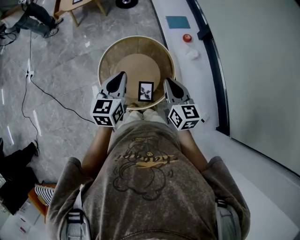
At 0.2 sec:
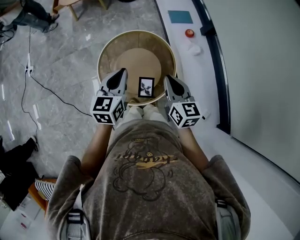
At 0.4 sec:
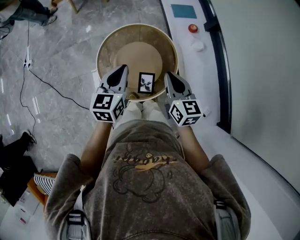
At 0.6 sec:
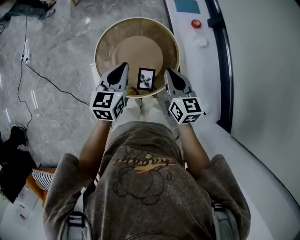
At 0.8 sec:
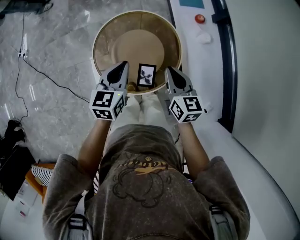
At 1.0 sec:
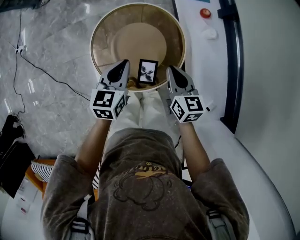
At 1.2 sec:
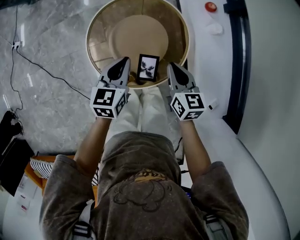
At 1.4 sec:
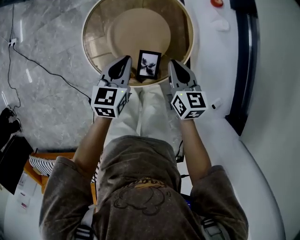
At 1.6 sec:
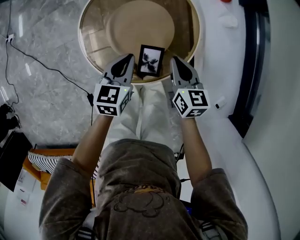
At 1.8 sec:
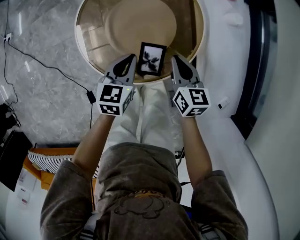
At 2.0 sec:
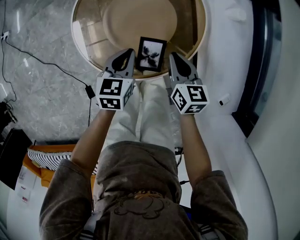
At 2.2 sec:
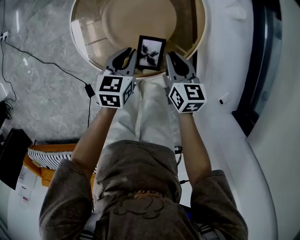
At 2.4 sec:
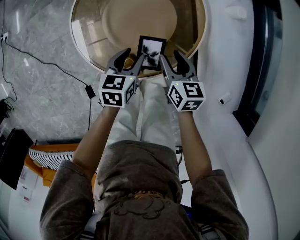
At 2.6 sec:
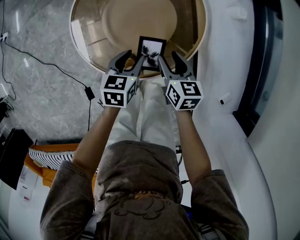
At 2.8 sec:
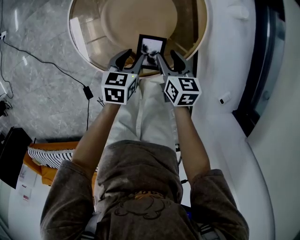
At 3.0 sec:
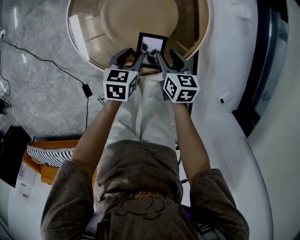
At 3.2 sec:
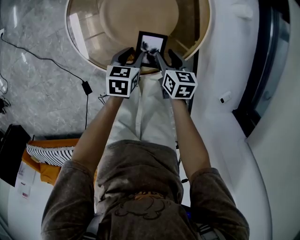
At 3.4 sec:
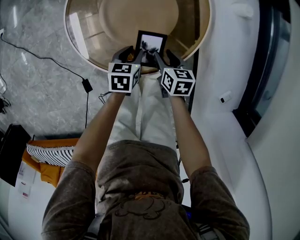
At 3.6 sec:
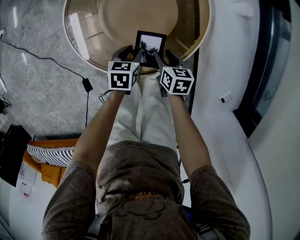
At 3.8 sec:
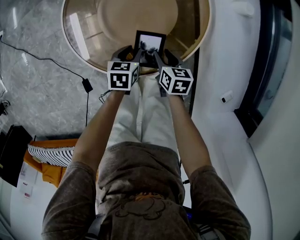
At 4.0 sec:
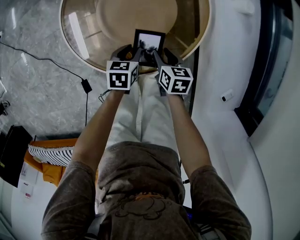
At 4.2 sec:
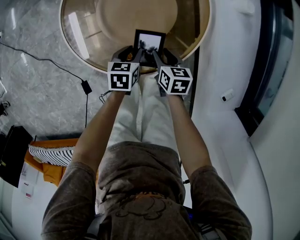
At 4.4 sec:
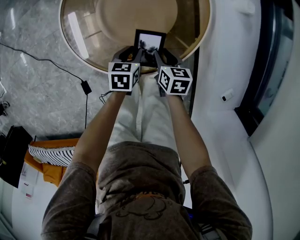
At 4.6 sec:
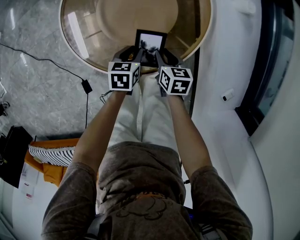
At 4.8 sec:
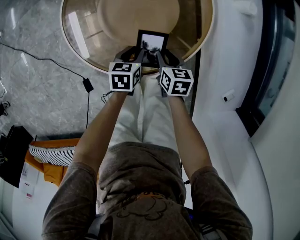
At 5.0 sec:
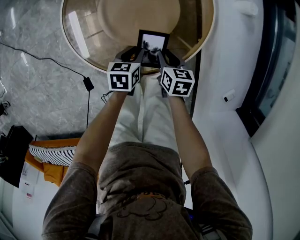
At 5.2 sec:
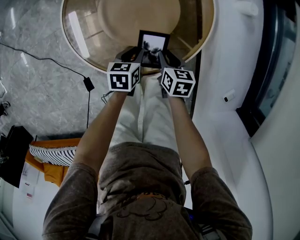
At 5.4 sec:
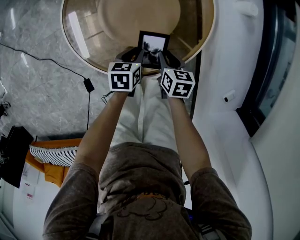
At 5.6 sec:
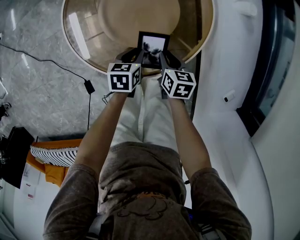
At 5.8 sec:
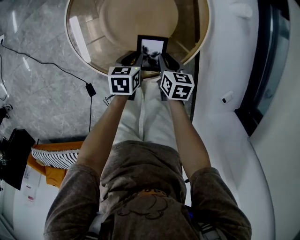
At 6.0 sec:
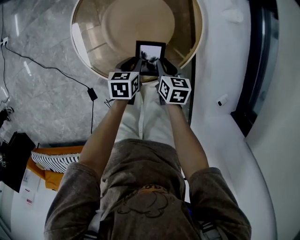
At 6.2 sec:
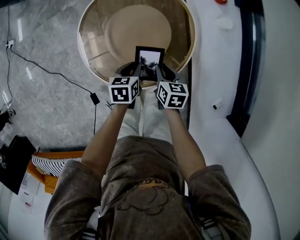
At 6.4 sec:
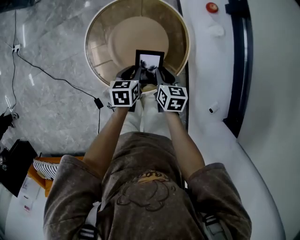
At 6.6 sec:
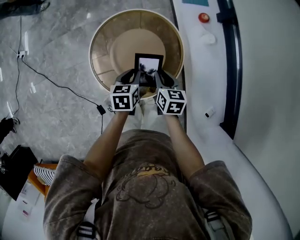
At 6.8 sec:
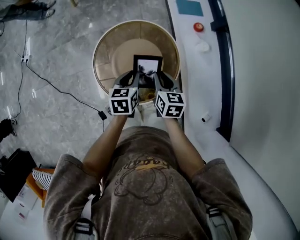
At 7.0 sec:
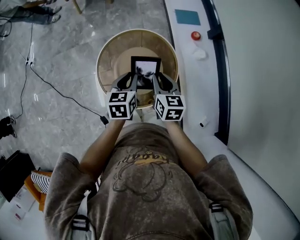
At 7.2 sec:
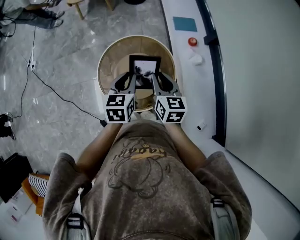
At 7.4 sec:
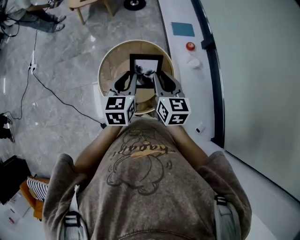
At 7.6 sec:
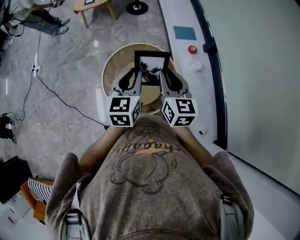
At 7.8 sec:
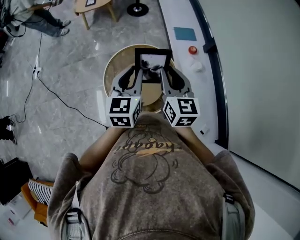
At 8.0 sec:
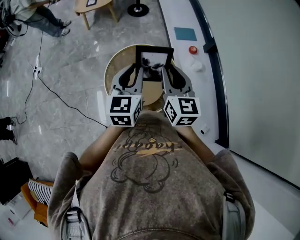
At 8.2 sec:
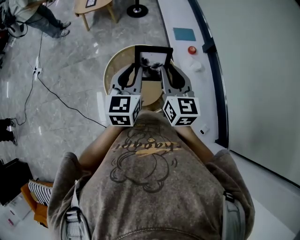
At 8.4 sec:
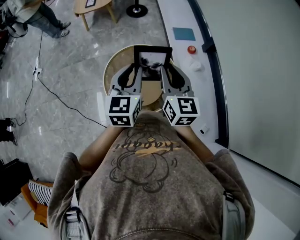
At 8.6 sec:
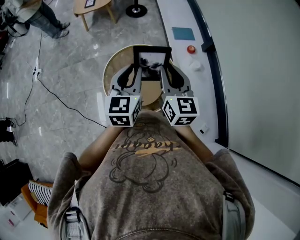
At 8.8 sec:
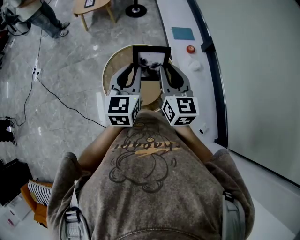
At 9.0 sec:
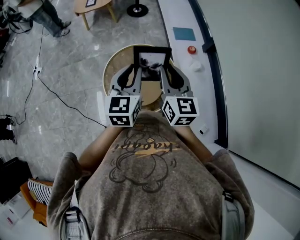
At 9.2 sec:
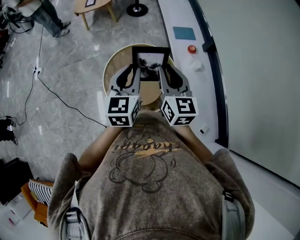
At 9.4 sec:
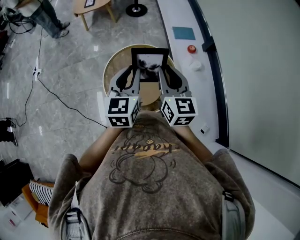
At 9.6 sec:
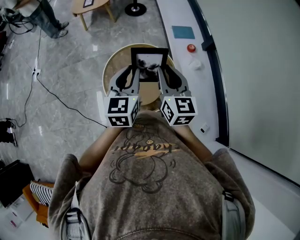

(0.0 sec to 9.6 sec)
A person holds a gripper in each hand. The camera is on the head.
0.0 sec - 1.6 sec: The two grippers go roughly 30 cm downward.
1.6 sec - 3.2 sec: The grippers both shift downward by some 15 cm. The left gripper rotates approximately 20 degrees, and opens its fingers. Meanwhile the right gripper opens.
3.2 sec - 4.8 sec: The grippers move only a little.
4.8 sec - 6.4 sec: Both grippers travel together upward, roughly 20 cm.
6.4 sec - 8.0 sec: Both grippers travel together upward, some 40 cm. The left gripper tips its fingers upward by approximately 40 degrees. The right gripper angles its fingers upward, by roughly 40 degrees.
8.0 sec - 9.6 sec: Neither gripper changes place.

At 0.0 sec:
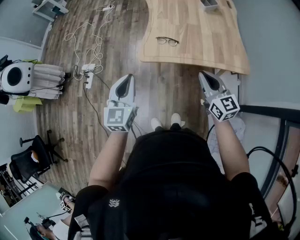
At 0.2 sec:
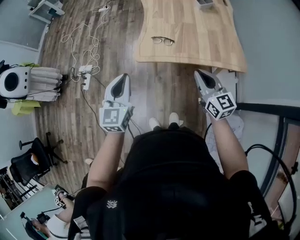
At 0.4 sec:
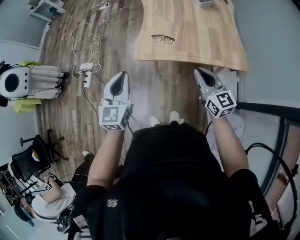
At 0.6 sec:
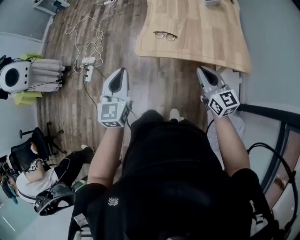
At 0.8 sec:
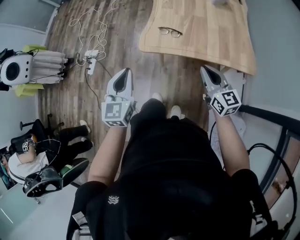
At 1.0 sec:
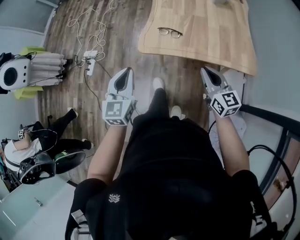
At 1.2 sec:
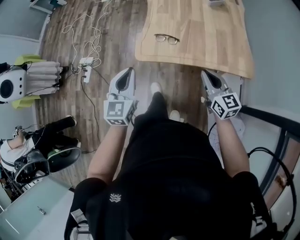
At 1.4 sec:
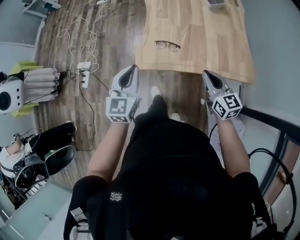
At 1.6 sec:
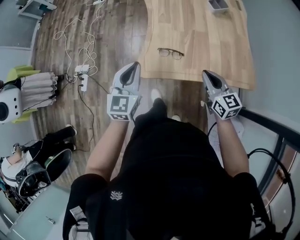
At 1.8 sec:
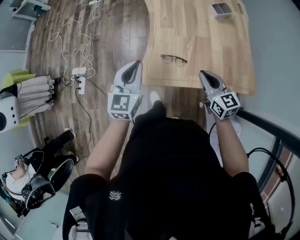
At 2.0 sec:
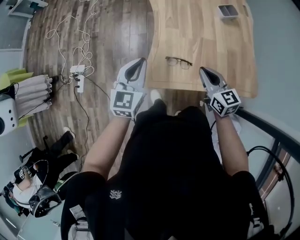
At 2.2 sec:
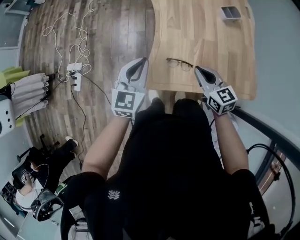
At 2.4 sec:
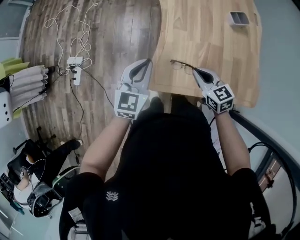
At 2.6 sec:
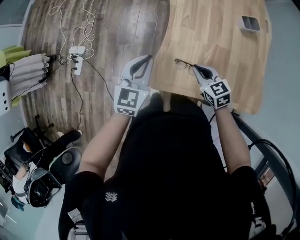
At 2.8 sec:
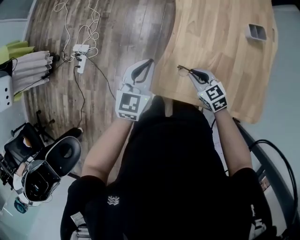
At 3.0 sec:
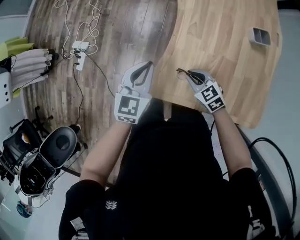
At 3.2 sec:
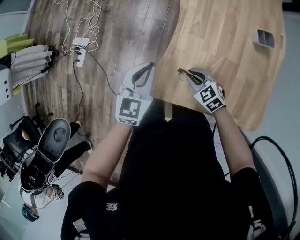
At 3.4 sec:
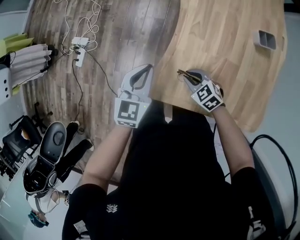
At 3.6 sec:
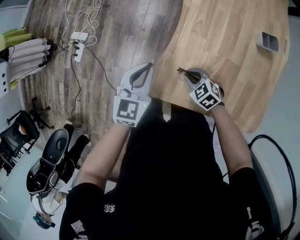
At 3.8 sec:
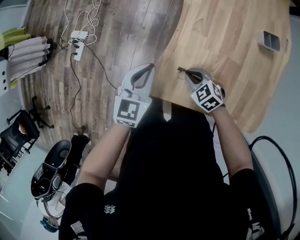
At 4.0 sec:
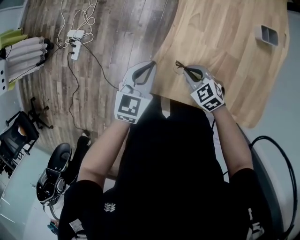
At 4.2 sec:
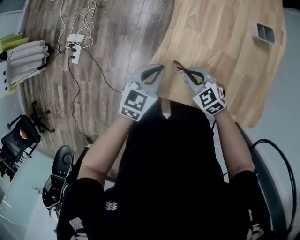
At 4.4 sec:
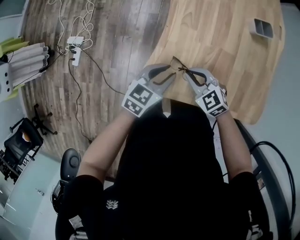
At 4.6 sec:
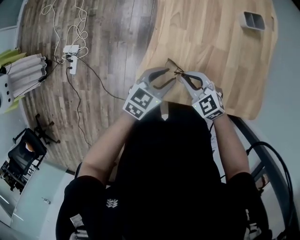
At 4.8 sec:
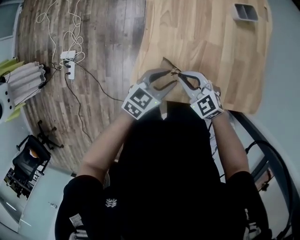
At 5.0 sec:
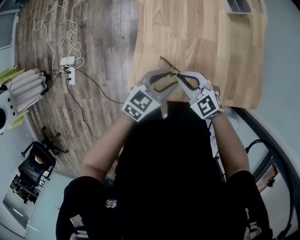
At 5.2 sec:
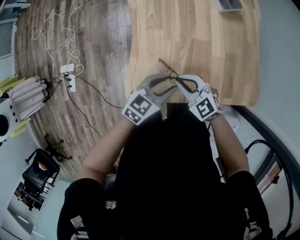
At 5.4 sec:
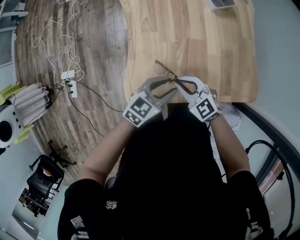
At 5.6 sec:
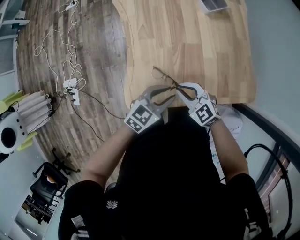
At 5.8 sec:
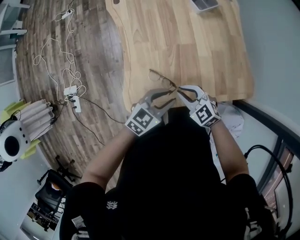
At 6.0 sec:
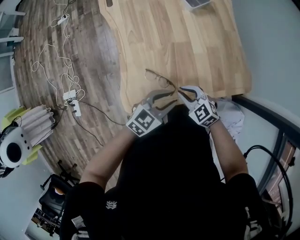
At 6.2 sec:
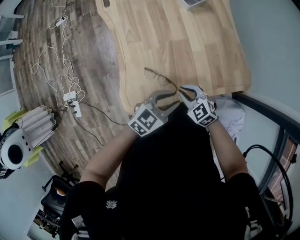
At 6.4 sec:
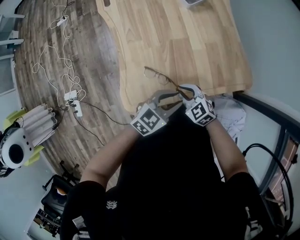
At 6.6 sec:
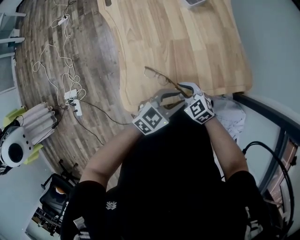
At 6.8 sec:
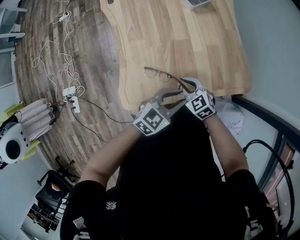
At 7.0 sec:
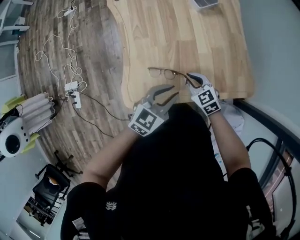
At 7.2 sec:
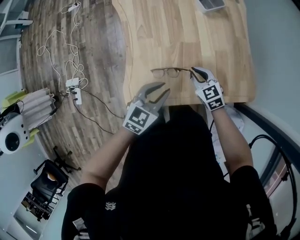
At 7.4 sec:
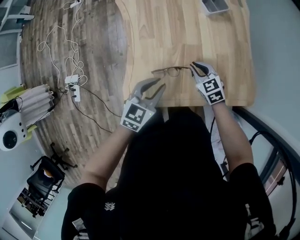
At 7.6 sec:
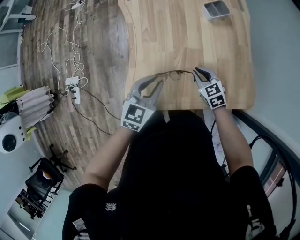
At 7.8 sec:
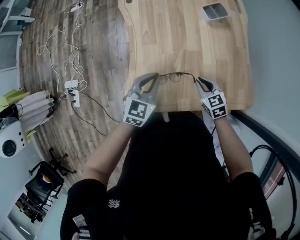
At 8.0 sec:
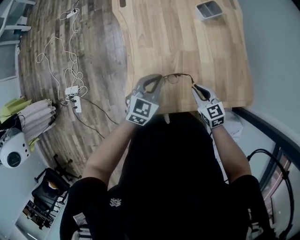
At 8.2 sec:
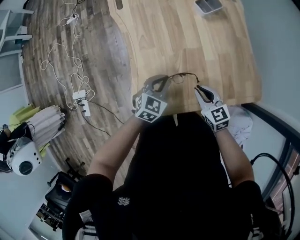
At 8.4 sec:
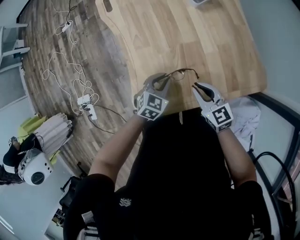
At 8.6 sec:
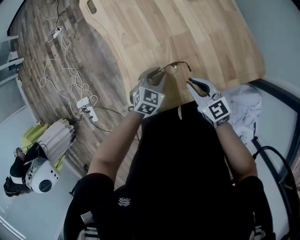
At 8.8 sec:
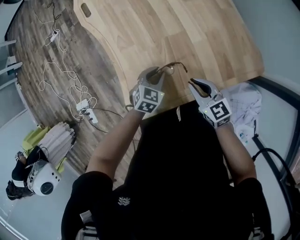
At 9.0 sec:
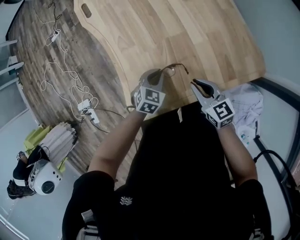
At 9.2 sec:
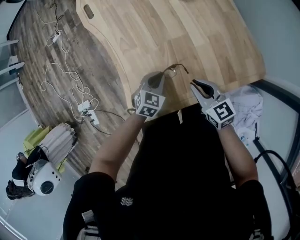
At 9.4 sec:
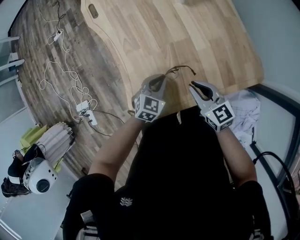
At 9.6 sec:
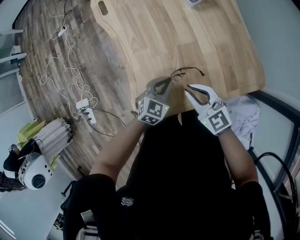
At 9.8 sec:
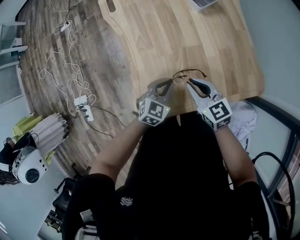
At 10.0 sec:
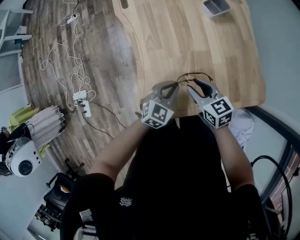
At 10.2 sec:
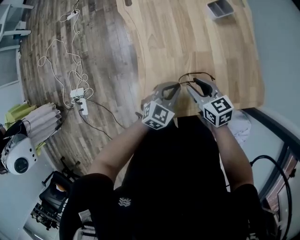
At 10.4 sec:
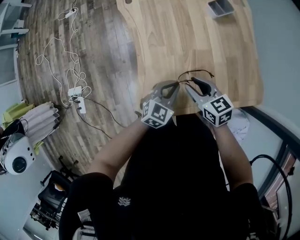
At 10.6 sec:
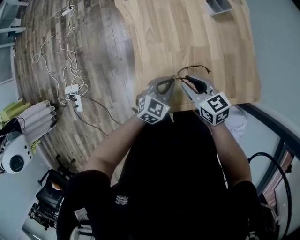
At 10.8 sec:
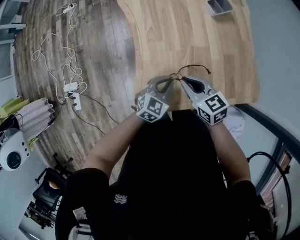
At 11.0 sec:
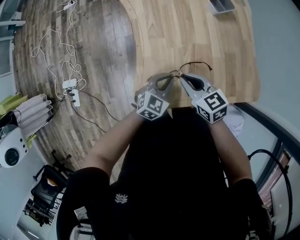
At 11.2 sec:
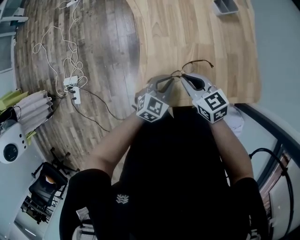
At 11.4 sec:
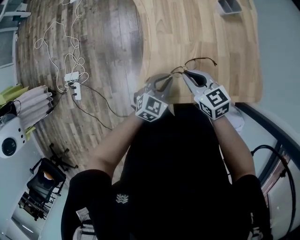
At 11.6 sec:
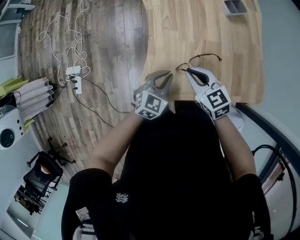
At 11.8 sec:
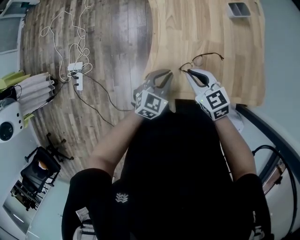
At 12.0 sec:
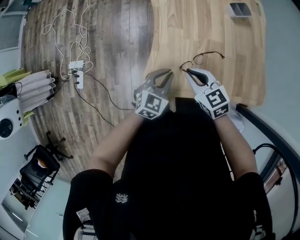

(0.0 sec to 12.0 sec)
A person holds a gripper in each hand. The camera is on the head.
0.0 sec - 1.6 sec: Both grippers move forward, some 20 cm.
1.6 sec - 3.0 sec: The right gripper shifts some 30 cm forward, downward and to the left, and changes its angle by some 50 degrees. The left gripper shifts about 20 cm forward and downward.
3.0 sec - 4.4 sec: The left gripper travels to the right, downward and backward by approximately 15 cm, changes its angle by approximately 30 degrees, and opens up.
4.4 sec - 6.0 sec: The right gripper shifts by roughly 15 cm, and changes its angle by some 20 degrees. Meanwhile the left gripper shifts by approximately 20 cm, and rotates some 30 degrees.
6.0 sec - 7.6 sec: The left gripper travels to the left and forward by approximately 10 cm, and turns by about 30 degrees. Meanwhile the right gripper travels forward by about 15 cm.
7.6 sec - 9.0 sec: The left gripper heads downward, covering about 15 cm, and turns by some 30 degrees. Meanwhile the right gripper shifts approximately 10 cm backward, and changes its angle by some 30 degrees.
9.0 sec - 10.4 sec: The left gripper is displaced upward by approximately 10 cm, while the right gripper shifts about 10 cm to the left, and opens up.
10.4 sec - 12.0 sec: Both grippers travel together to the left, about 10 cm. The right gripper changes its angle by some 20 degrees, and closes up.

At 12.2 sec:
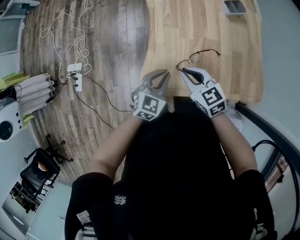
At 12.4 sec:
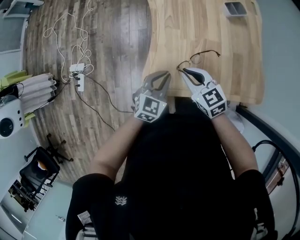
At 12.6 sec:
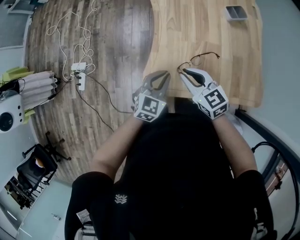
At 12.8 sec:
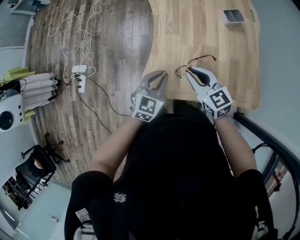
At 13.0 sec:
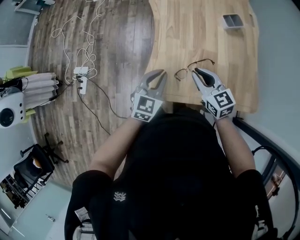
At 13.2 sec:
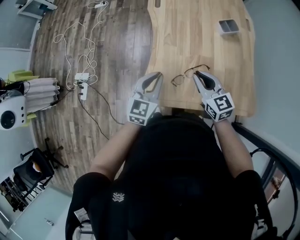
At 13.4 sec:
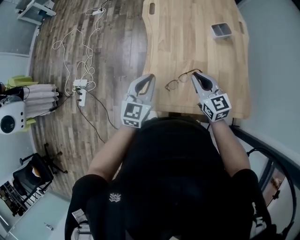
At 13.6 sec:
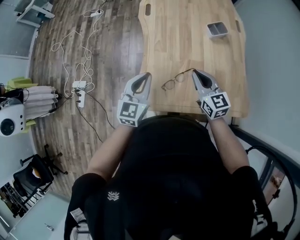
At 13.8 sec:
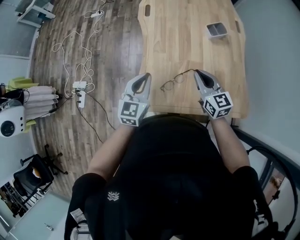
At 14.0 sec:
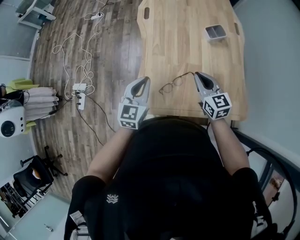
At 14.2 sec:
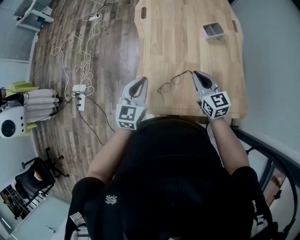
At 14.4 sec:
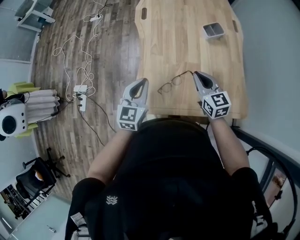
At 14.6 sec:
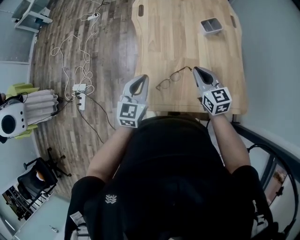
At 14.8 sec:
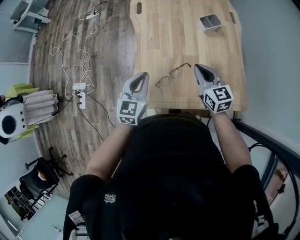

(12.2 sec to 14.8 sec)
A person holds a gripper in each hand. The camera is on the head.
12.2 sec - 13.4 sec: The left gripper travels upward by about 10 cm, and changes its angle by roughly 20 degrees; the right gripper heads to the right and upward, covering about 15 cm.
13.4 sec - 14.8 sec: The right gripper moves to the right, roughly 5 cm.
